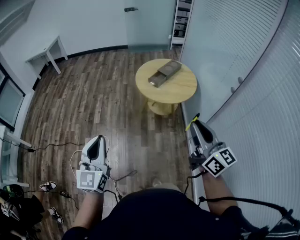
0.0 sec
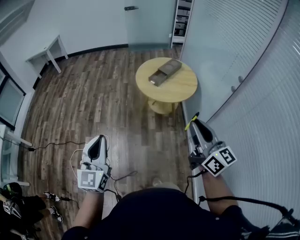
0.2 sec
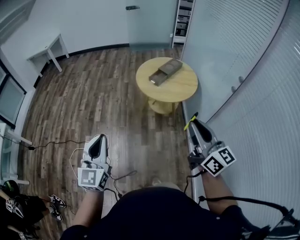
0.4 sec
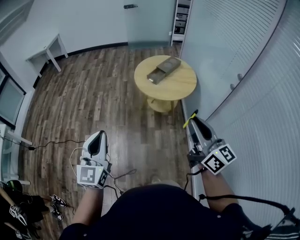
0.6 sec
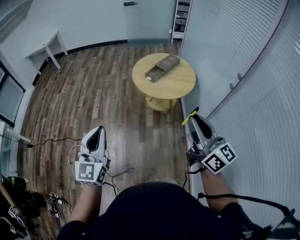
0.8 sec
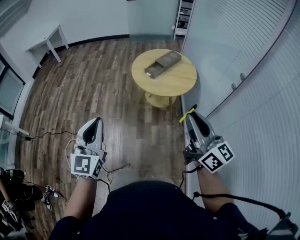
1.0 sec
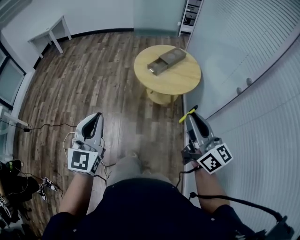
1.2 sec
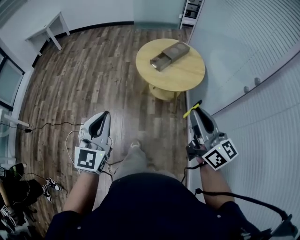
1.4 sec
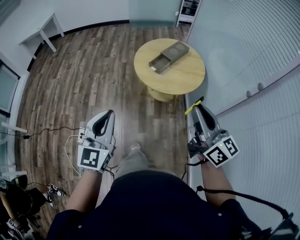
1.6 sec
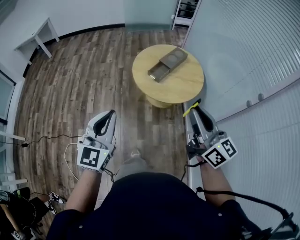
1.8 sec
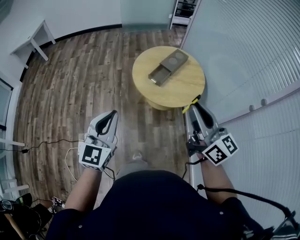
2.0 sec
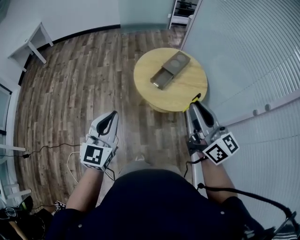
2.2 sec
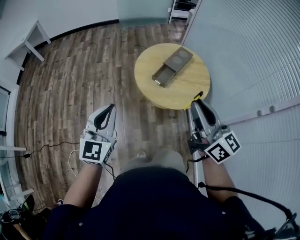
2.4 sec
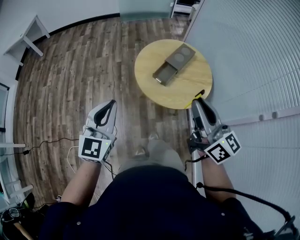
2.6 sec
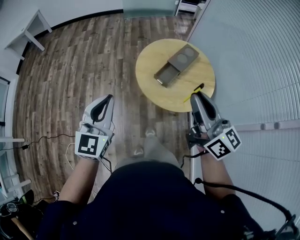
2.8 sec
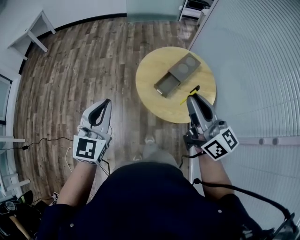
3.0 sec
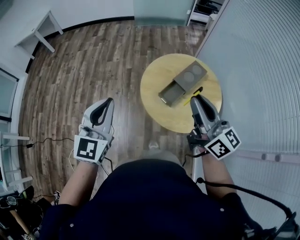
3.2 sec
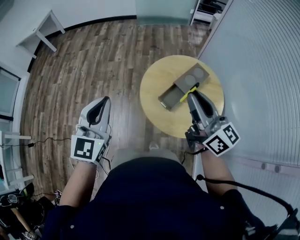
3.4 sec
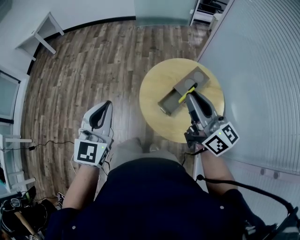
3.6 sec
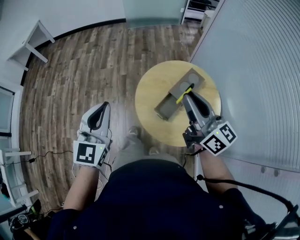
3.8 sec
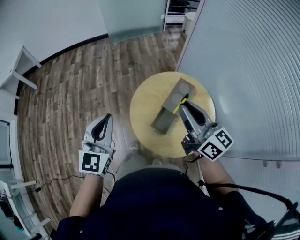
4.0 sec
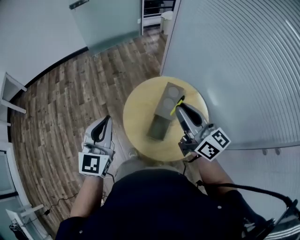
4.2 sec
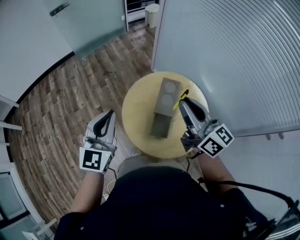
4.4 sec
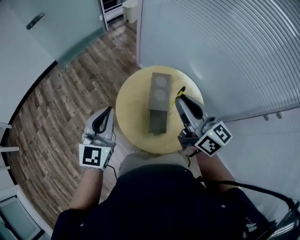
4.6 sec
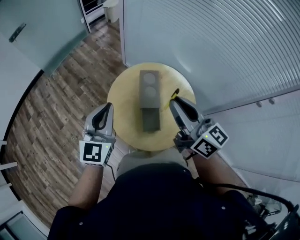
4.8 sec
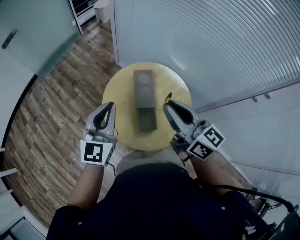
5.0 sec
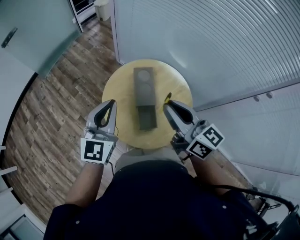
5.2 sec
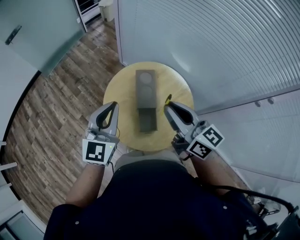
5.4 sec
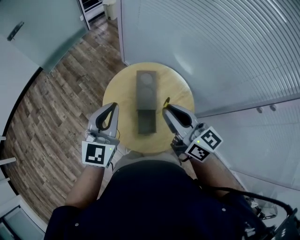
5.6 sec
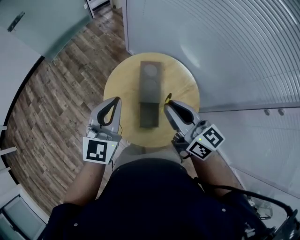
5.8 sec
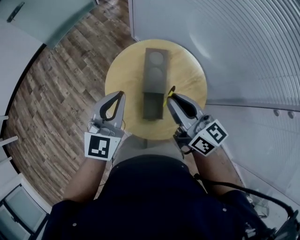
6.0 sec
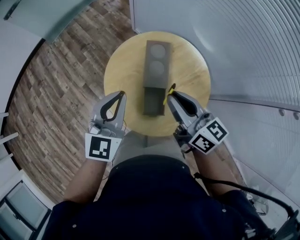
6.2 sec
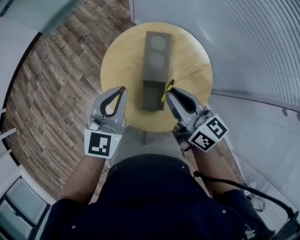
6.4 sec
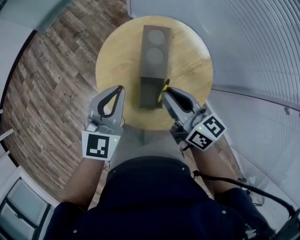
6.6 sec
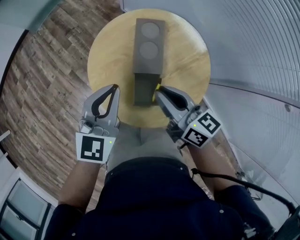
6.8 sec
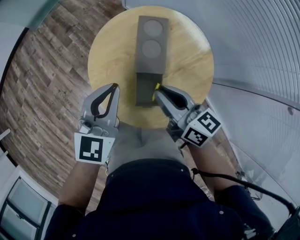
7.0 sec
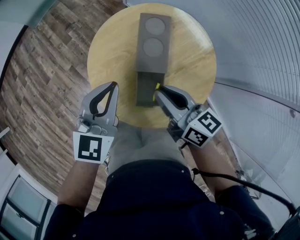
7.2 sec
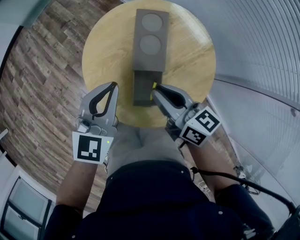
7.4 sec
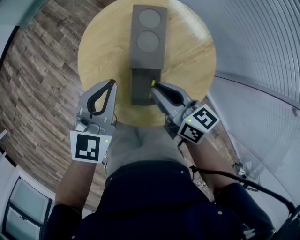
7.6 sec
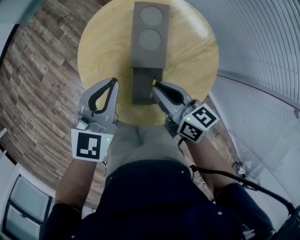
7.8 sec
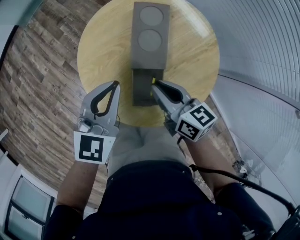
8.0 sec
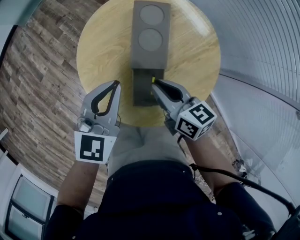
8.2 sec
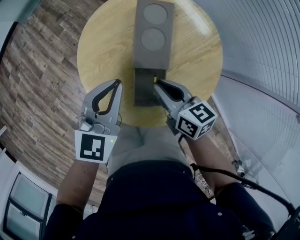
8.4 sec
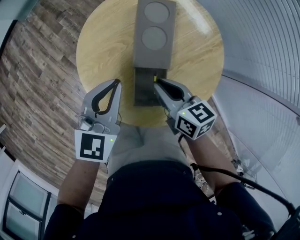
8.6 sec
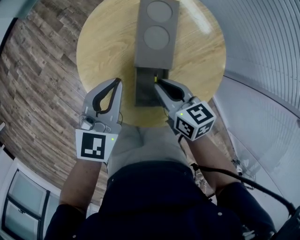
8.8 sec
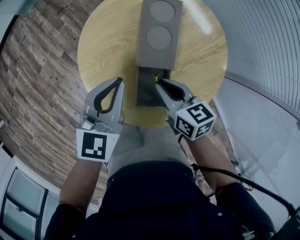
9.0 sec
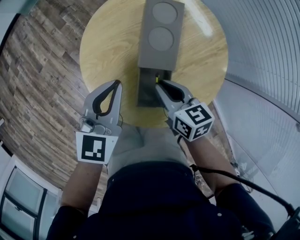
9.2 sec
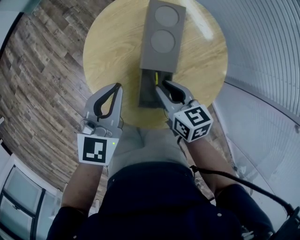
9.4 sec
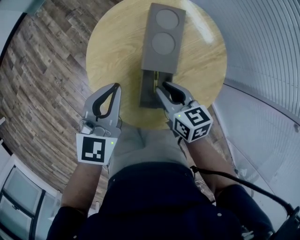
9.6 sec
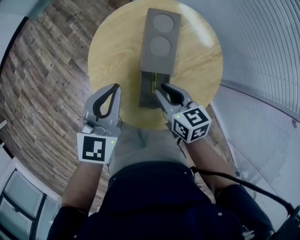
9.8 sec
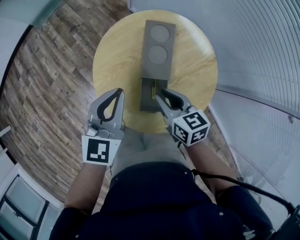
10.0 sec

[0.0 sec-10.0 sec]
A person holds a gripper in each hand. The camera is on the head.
0.0 sec to 1.4 sec: The right gripper is displaced forward by roughly 10 cm, while the left gripper is displaced forward and to the right by roughly 15 cm.
1.4 sec to 2.8 sec: The grippers both shift forward by roughly 30 cm.
2.8 sec to 4.2 sec: Both grippers travel together forward, approximately 30 cm.
4.2 sec to 5.8 sec: The right gripper shifts by about 5 cm, and changes its angle by some 20 degrees; the left gripper moves approximately 15 cm, and swivels some 30 degrees.
5.8 sec to 7.2 sec: The two grippers go about 20 cm downward.
7.2 sec to 8.6 sec: The right gripper shifts some 10 cm downward. Meanwhile the left gripper travels downward by about 5 cm.
8.6 sec to 10.0 sec: The left gripper goes some 5 cm upward.

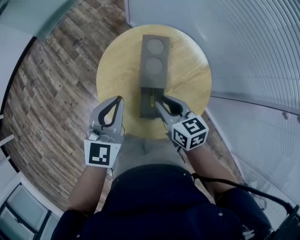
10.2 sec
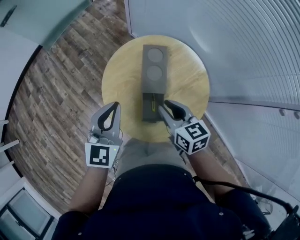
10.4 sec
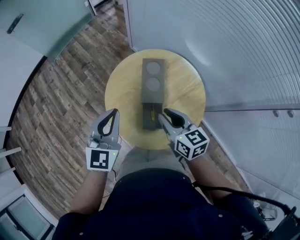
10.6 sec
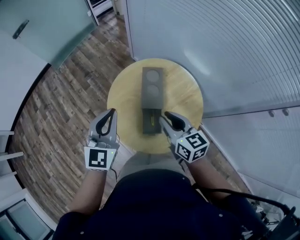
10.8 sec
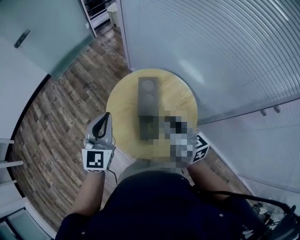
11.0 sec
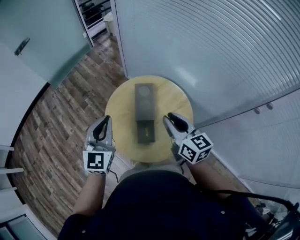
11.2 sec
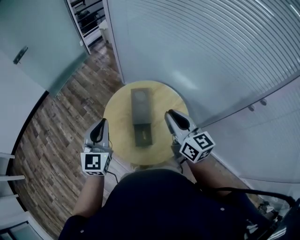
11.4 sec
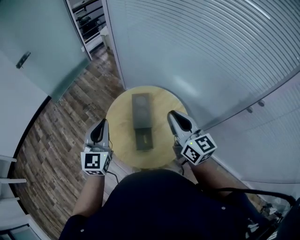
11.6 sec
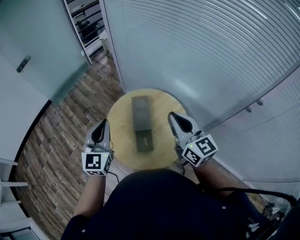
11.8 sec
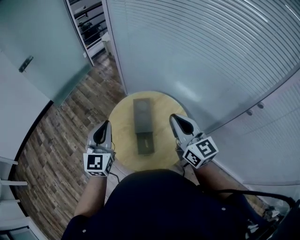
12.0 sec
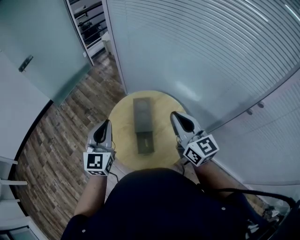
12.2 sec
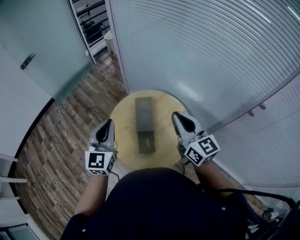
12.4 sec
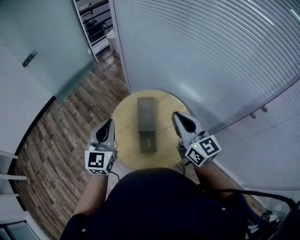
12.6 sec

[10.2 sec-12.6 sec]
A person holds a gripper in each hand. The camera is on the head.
10.2 sec to 11.4 sec: The right gripper moves upward, some 25 cm, and rotates some 30 degrees; the left gripper shifts about 15 cm upward.
11.4 sec to 12.6 sec: The right gripper is displaced upward by roughly 5 cm.

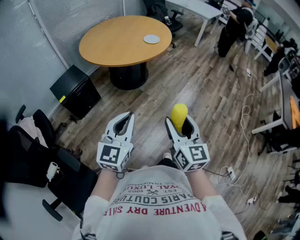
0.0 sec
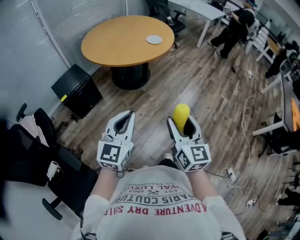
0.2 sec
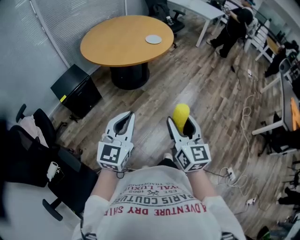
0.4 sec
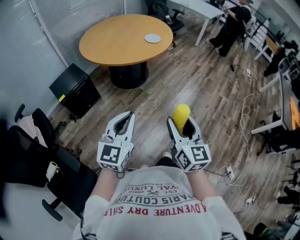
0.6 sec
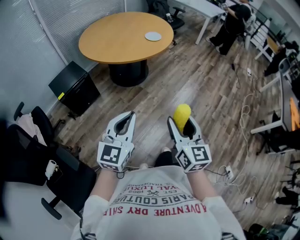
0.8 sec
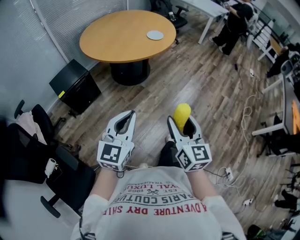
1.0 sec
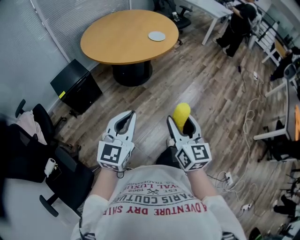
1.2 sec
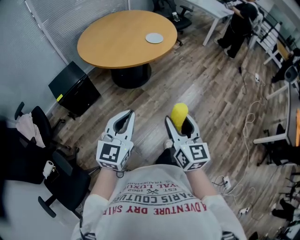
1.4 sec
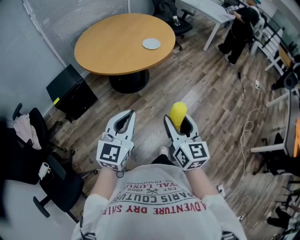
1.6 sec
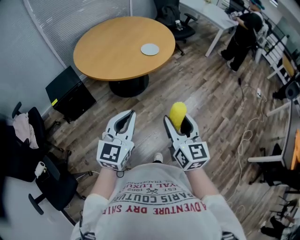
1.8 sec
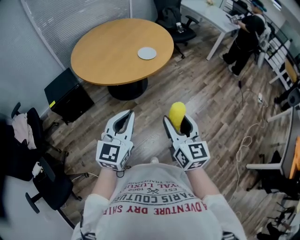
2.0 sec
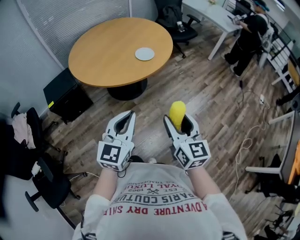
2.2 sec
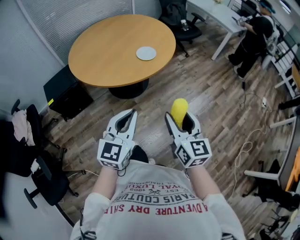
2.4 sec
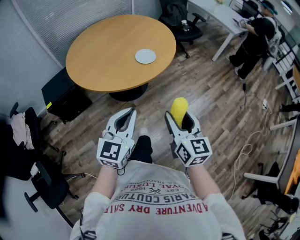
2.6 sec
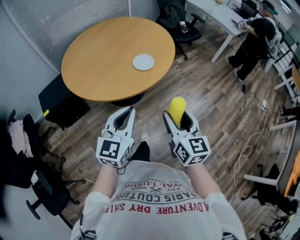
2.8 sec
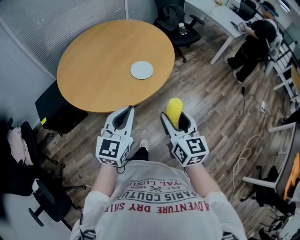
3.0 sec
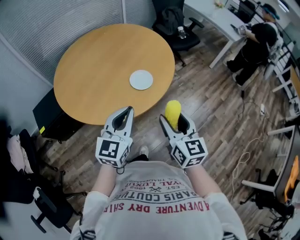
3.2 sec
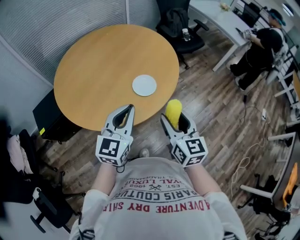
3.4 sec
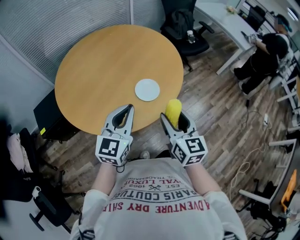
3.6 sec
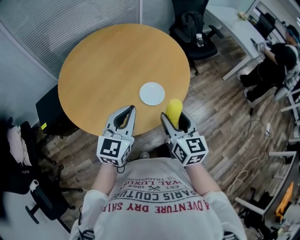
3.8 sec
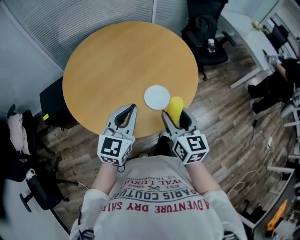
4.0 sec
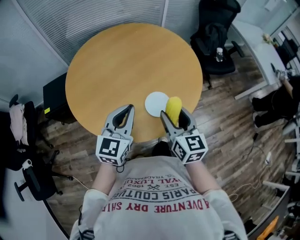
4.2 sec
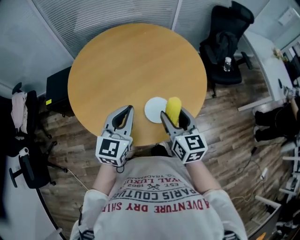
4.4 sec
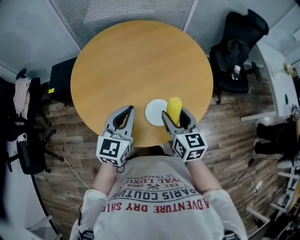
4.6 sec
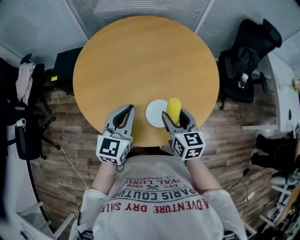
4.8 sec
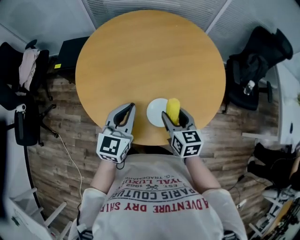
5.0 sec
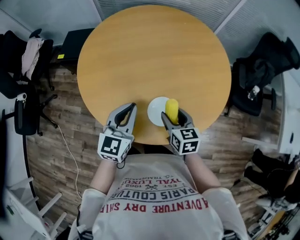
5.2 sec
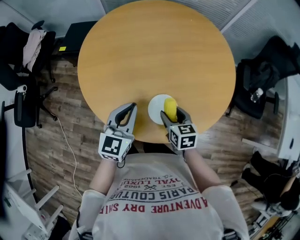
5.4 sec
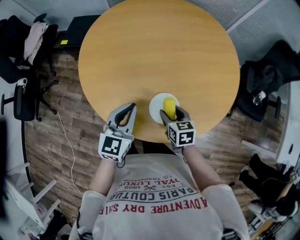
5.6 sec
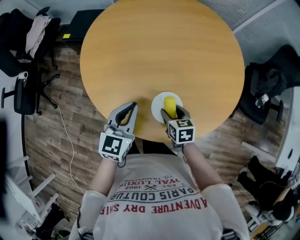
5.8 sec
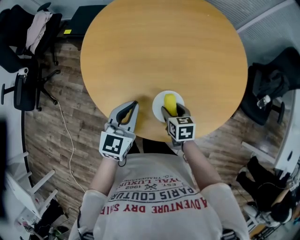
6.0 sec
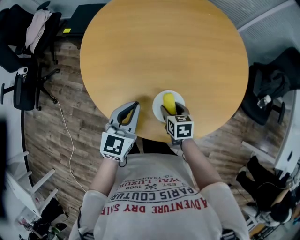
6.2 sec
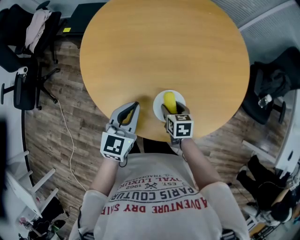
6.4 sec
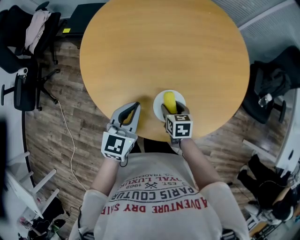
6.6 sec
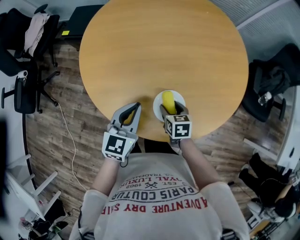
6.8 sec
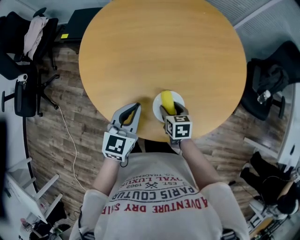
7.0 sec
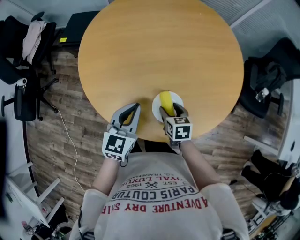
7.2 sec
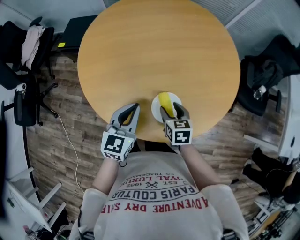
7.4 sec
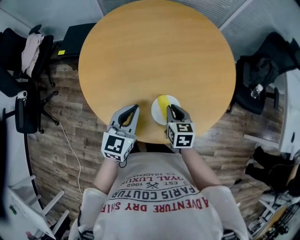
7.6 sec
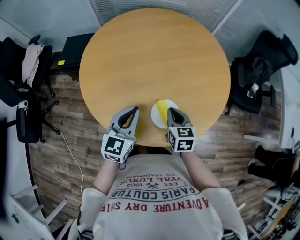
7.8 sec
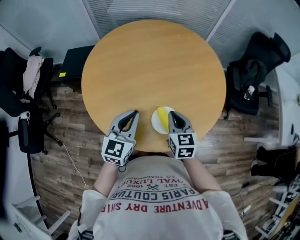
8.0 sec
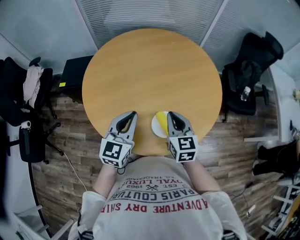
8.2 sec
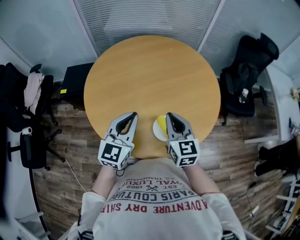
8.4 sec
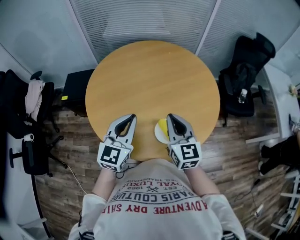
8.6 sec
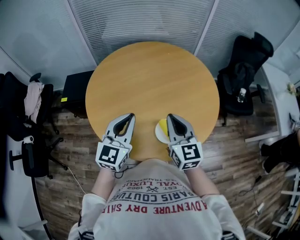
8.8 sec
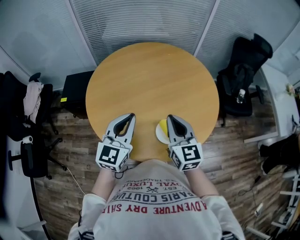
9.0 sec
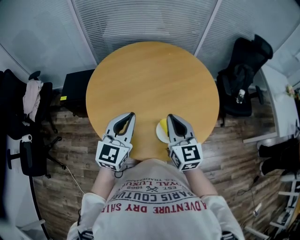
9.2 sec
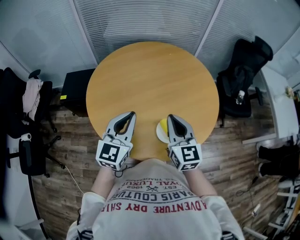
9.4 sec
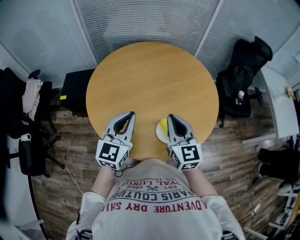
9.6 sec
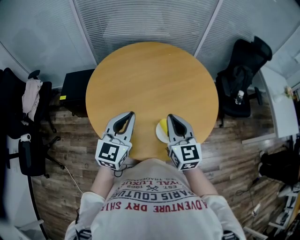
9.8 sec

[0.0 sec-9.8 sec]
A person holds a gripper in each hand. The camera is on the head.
0.0 sec to 1.4 sec: Both grippers travel together forward, some 10 cm.
1.4 sec to 2.8 sec: Both grippers move forward and to the right, approximately 35 cm.
2.8 sec to 4.2 sec: The grippers both shift forward by about 35 cm. The right gripper turns by about 20 degrees.
4.2 sec to 5.6 sec: The left gripper shifts roughly 10 cm downward, and swivels approximately 30 degrees. Meanwhile the right gripper is displaced downward by about 25 cm, and tips its fingers downward by some 30 degrees.
5.6 sec to 7.0 sec: The grippers move only a little.
7.0 sec to 8.4 sec: The right gripper is displaced upward by approximately 25 cm, angles its fingers upward, by approximately 40 degrees, and closes its fingers; the left gripper goes some 15 cm upward, and rotates roughly 20 degrees.
8.4 sec to 9.8 sec: The grippers make only small movements.

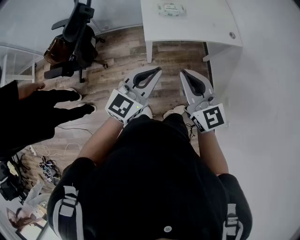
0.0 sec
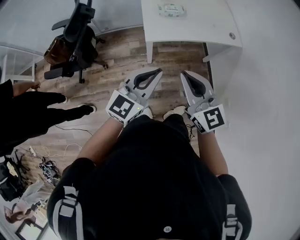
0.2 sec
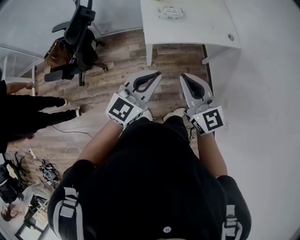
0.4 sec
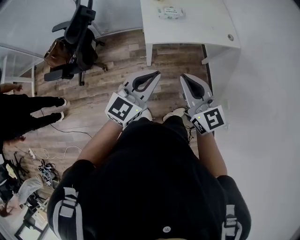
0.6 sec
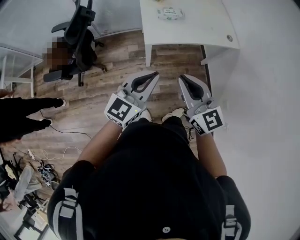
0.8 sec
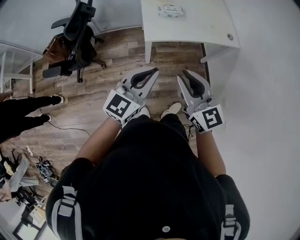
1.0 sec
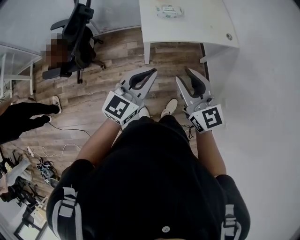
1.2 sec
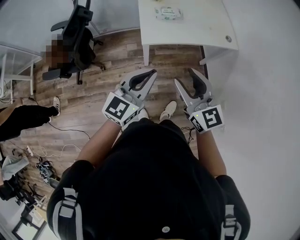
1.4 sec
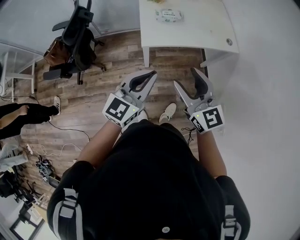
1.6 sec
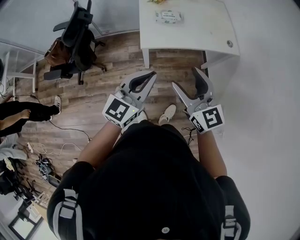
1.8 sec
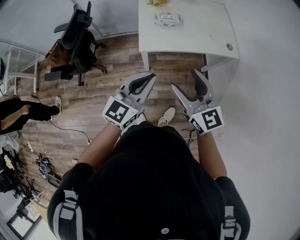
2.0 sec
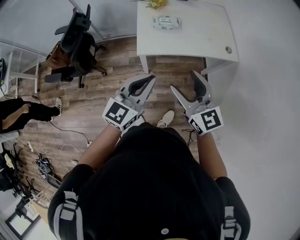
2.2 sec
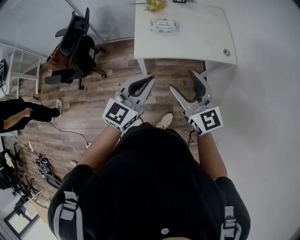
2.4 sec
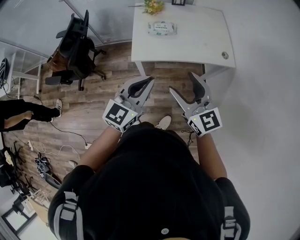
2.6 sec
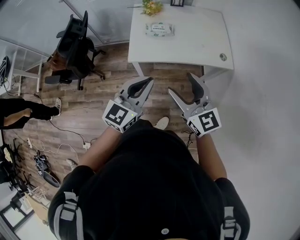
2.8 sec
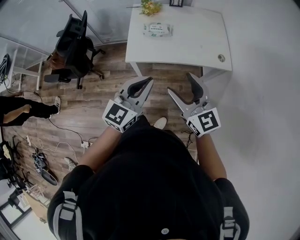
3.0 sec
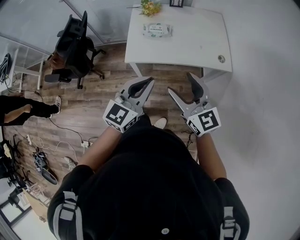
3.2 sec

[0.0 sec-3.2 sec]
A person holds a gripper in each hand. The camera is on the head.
0.0 sec to 1.6 sec: The right gripper opens.
1.6 sec to 3.2 sec: Both grippers move to the right and forward, roughly 20 cm.
